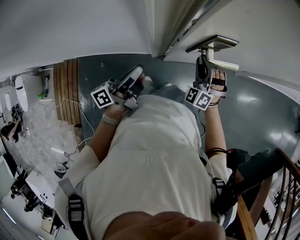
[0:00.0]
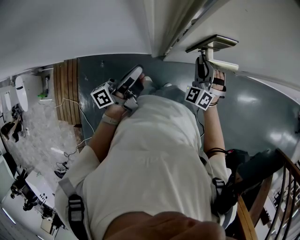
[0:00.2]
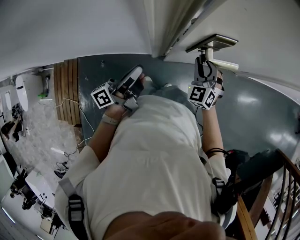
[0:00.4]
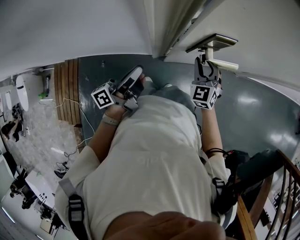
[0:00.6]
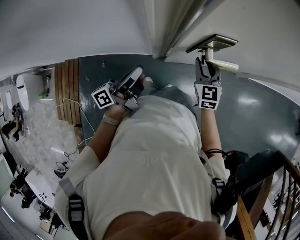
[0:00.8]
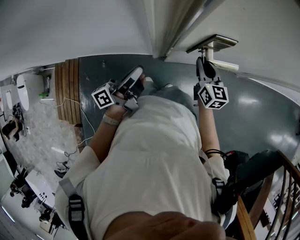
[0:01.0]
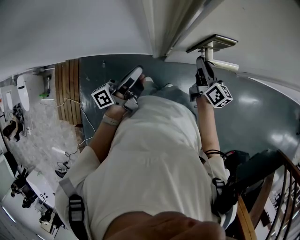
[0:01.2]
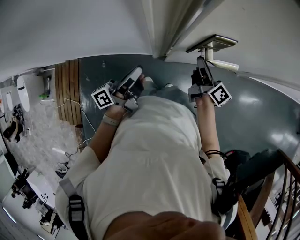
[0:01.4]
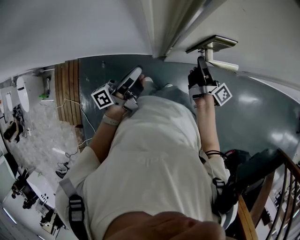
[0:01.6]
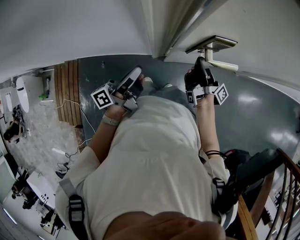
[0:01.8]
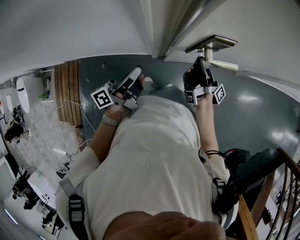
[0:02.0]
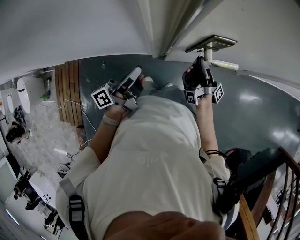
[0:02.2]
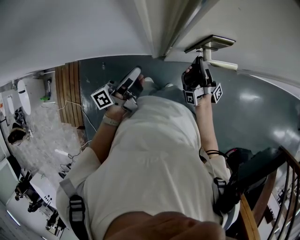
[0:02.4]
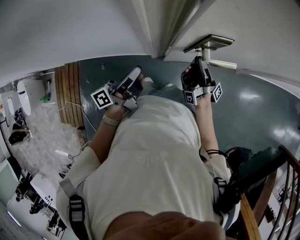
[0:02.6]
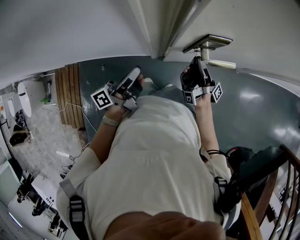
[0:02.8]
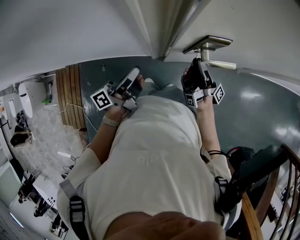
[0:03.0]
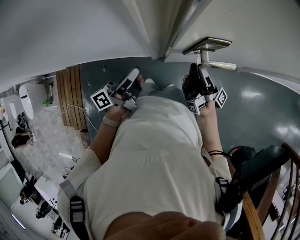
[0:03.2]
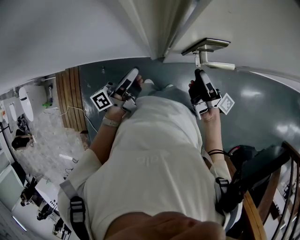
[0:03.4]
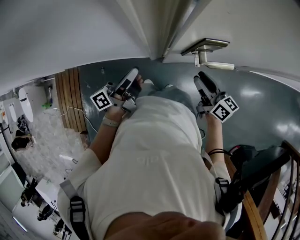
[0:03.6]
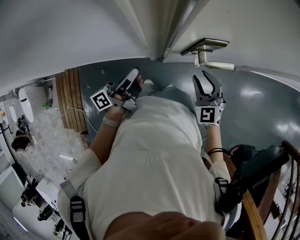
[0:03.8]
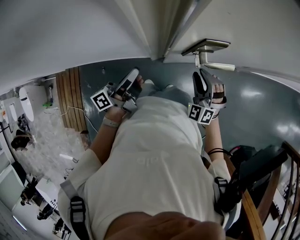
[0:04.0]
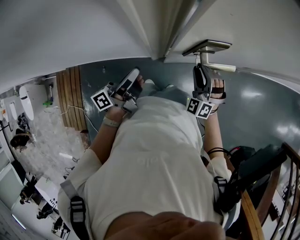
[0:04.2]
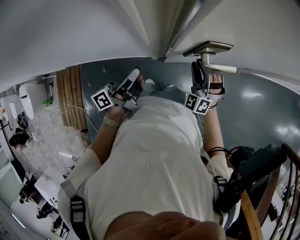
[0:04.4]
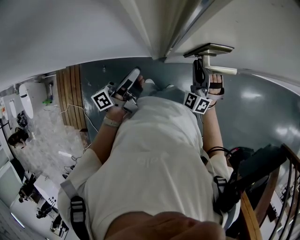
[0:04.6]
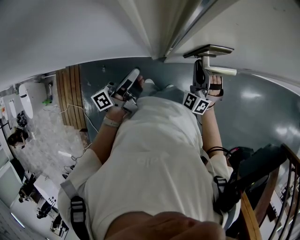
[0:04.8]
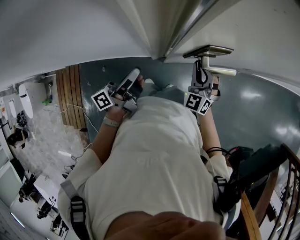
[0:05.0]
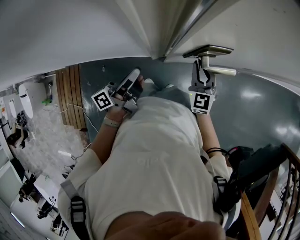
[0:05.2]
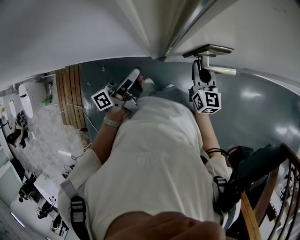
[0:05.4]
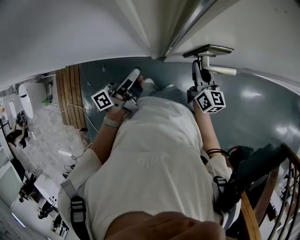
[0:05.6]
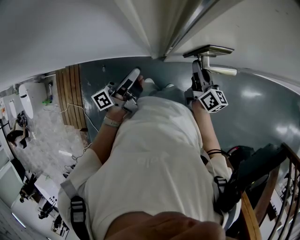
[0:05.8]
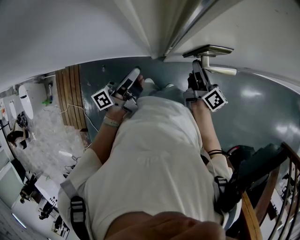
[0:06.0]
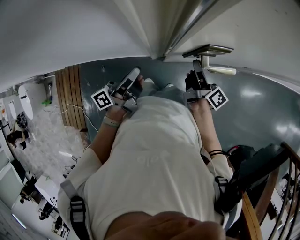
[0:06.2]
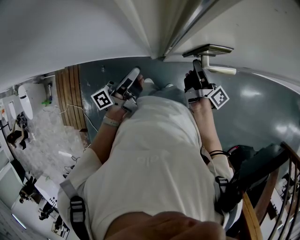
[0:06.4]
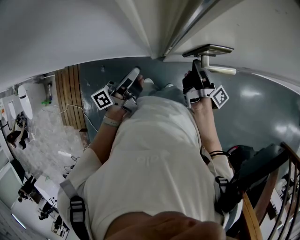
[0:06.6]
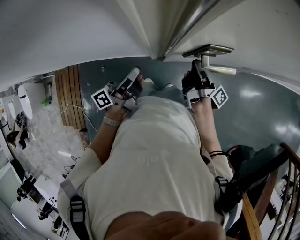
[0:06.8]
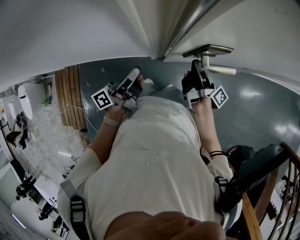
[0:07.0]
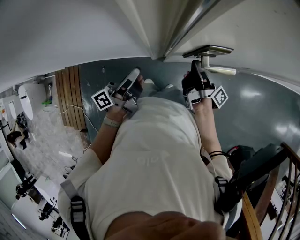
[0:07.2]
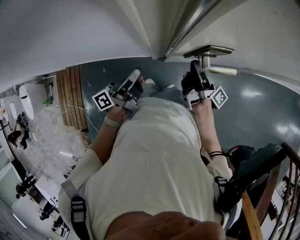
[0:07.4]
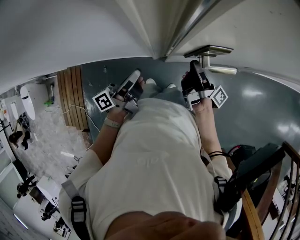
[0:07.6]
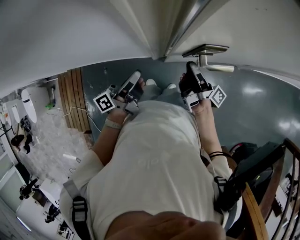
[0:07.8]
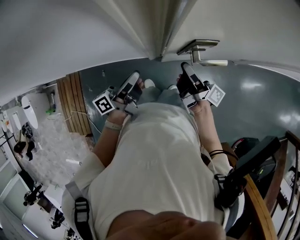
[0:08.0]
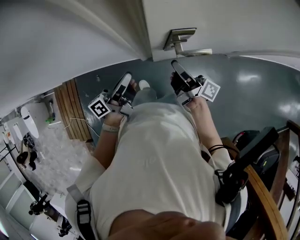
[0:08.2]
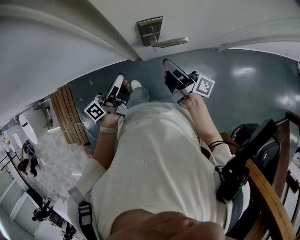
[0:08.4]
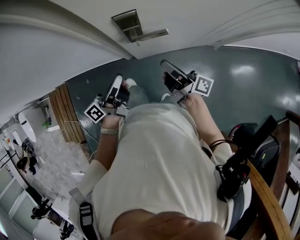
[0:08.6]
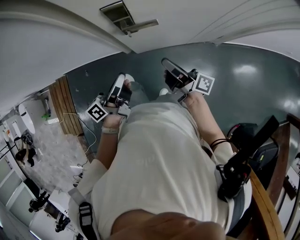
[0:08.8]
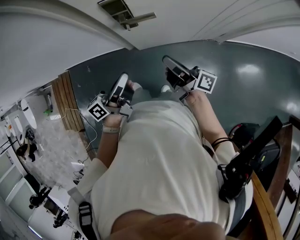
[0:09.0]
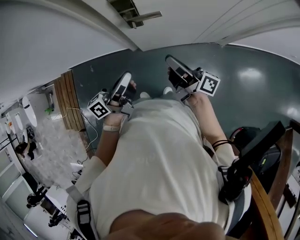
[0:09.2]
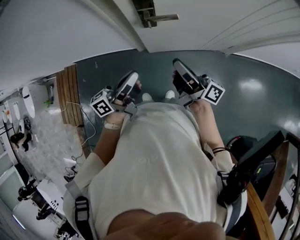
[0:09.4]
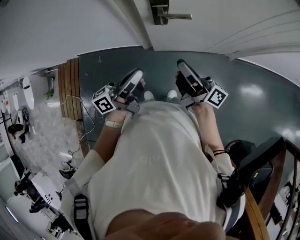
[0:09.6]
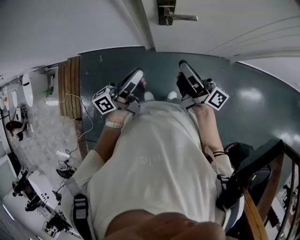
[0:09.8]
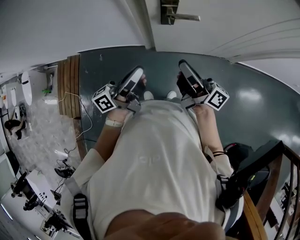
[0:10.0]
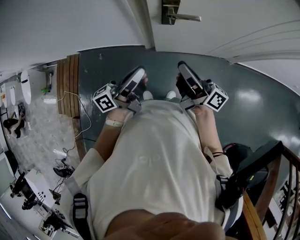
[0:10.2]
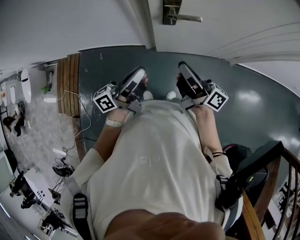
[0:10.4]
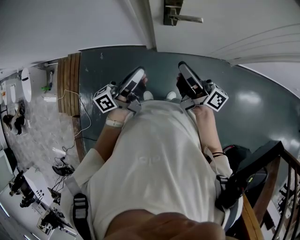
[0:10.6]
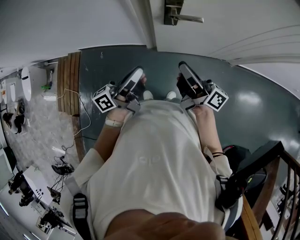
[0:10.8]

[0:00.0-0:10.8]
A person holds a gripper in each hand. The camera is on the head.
0:00.0 to 0:01.6: The right gripper rotates around the line of its fingers by roughly 140 degrees, clockwise from behind.
0:01.6 to 0:03.0: The right gripper changes its angle by about 40 degrees.
0:03.0 to 0:04.6: The right gripper tilts its fingers some 30 degrees downward.
0:04.6 to 0:06.2: The right gripper twists about 130 degrees clockwise, seen from behind.
0:06.2 to 0:07.8: The right gripper swivels roughly 30 degrees.
0:07.8 to 0:09.2: The right gripper travels backward, to the right and upward by some 25 cm, and rotates about 30 degrees. The left gripper moves to the right and backward, approximately 30 cm.
0:09.2 to 0:10.8: Both grippers move to the left, about 10 cm.

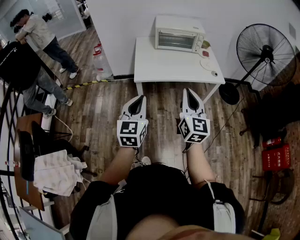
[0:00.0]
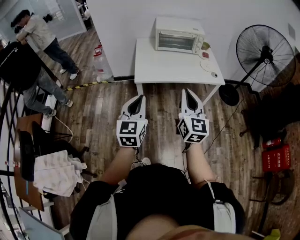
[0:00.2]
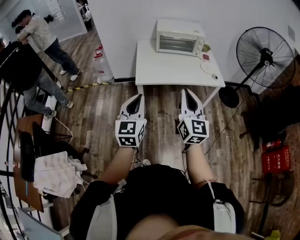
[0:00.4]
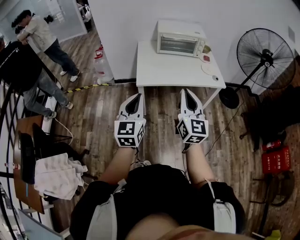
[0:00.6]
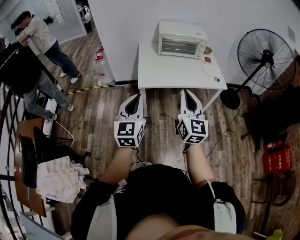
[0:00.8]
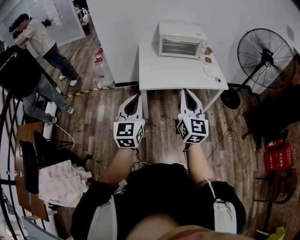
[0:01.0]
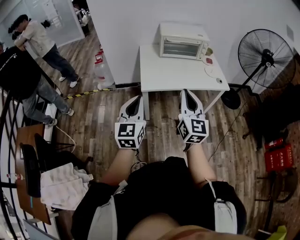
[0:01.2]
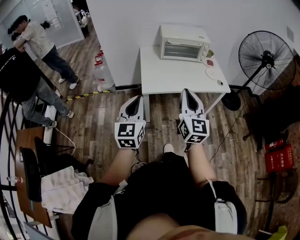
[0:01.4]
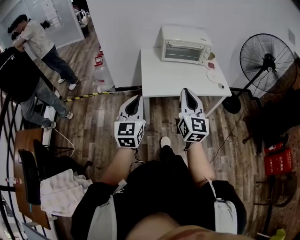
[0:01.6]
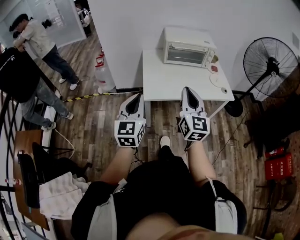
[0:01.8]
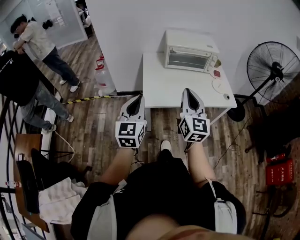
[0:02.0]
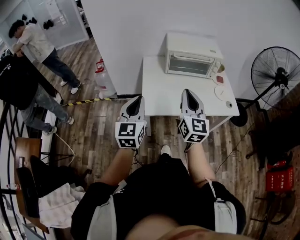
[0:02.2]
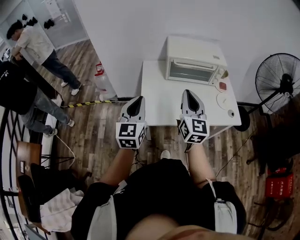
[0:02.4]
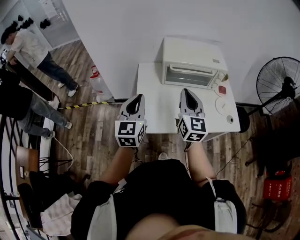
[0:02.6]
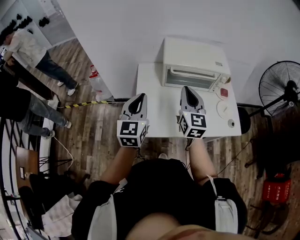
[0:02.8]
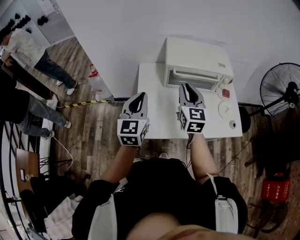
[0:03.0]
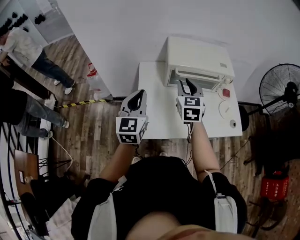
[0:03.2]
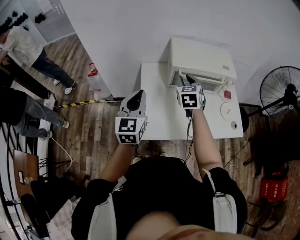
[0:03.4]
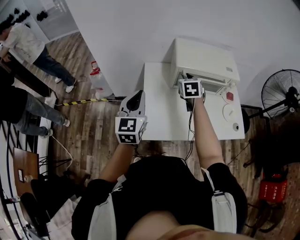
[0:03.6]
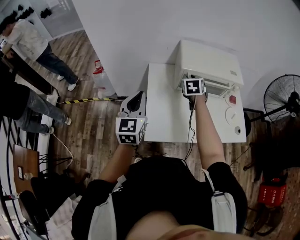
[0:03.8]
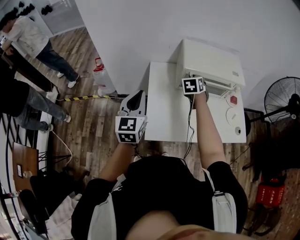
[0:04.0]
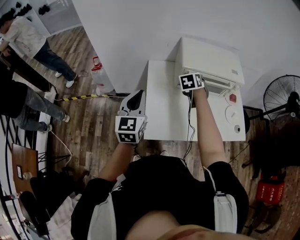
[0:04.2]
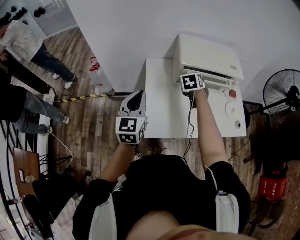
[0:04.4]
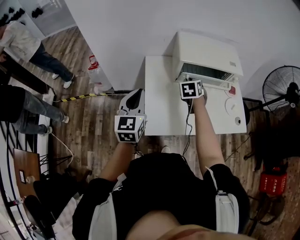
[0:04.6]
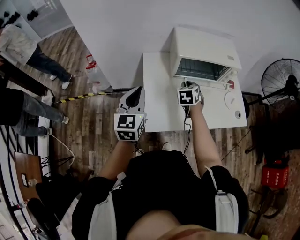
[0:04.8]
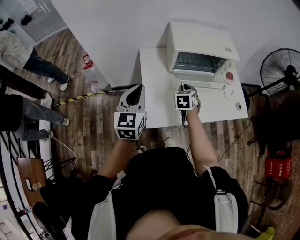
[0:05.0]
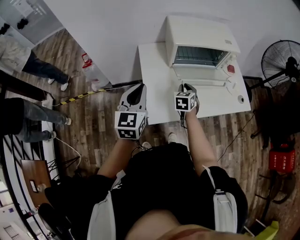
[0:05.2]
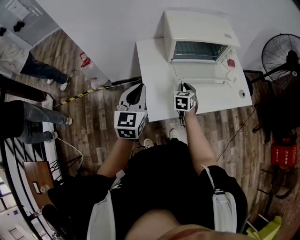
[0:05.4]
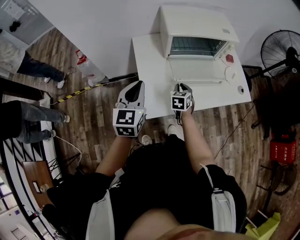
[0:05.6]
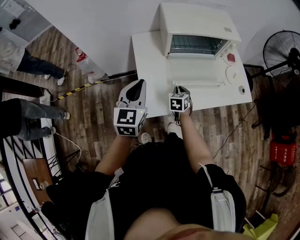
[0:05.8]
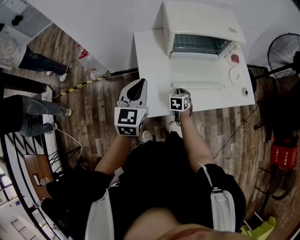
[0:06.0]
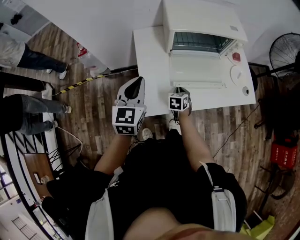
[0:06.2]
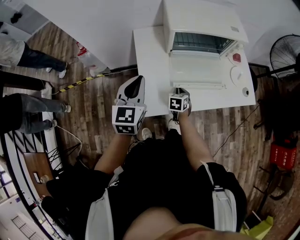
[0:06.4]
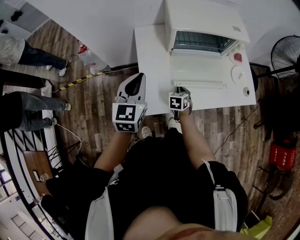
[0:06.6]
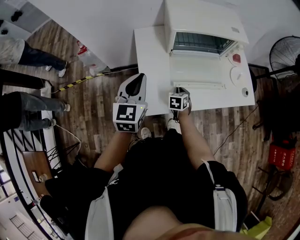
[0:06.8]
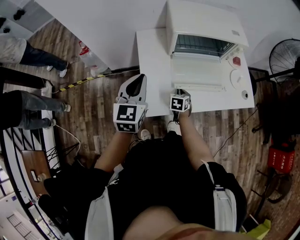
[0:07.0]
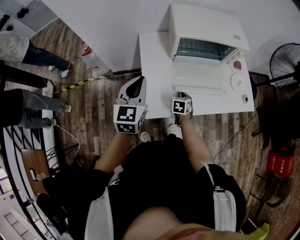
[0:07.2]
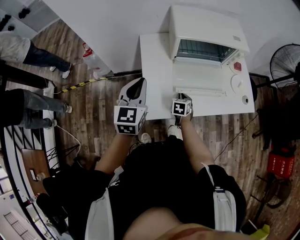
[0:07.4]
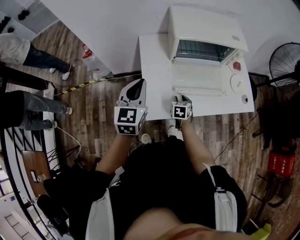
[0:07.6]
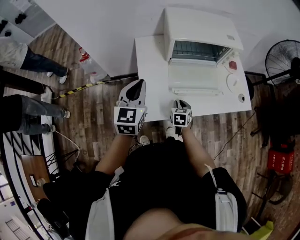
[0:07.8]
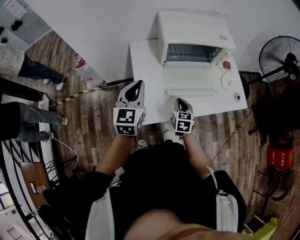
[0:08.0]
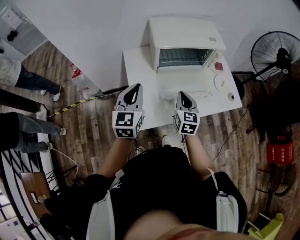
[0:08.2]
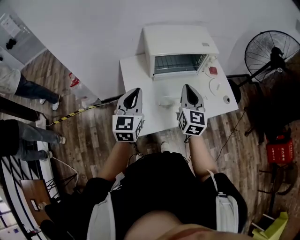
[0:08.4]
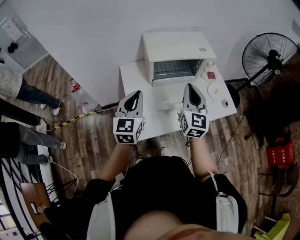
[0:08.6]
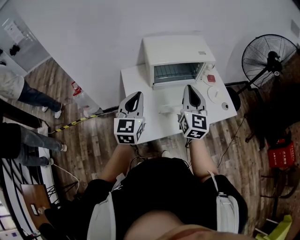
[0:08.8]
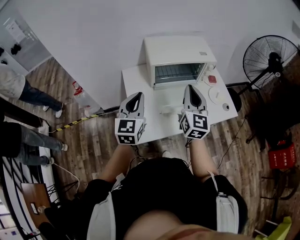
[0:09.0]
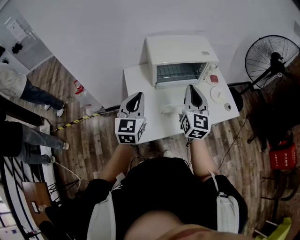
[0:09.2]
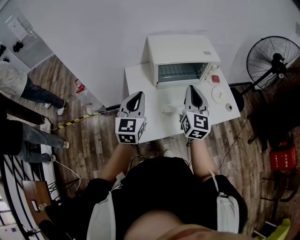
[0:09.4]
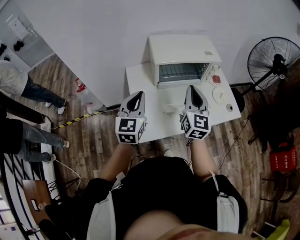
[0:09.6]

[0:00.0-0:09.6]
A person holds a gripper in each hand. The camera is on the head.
0:00.0 to 0:01.6: Both grippers move to the left and forward, about 15 cm.
0:01.6 to 0:03.2: Both grippers move forward, about 40 cm. The right gripper changes its angle by approximately 30 degrees, and opens its fingers.
0:03.2 to 0:04.8: The right gripper travels downward by about 15 cm, and rotates some 30 degrees, while the left gripper shifts about 5 cm to the left.
0:04.8 to 0:06.4: The left gripper moves approximately 5 cm, while the right gripper travels downward and backward by approximately 20 cm.
0:06.4 to 0:08.0: The right gripper heads upward, covering about 10 cm, and opens and closes again.
0:08.0 to 0:09.6: The right gripper goes about 25 cm upward, and angles its fingers upward, by roughly 40 degrees. Meanwhile the left gripper shifts by roughly 5 cm.

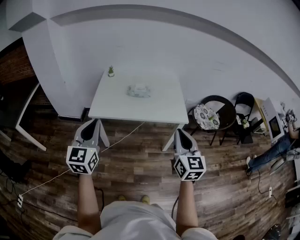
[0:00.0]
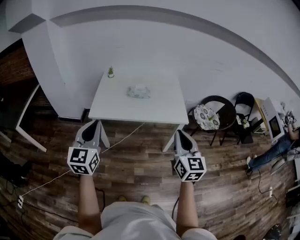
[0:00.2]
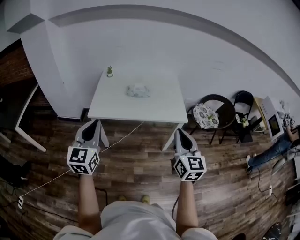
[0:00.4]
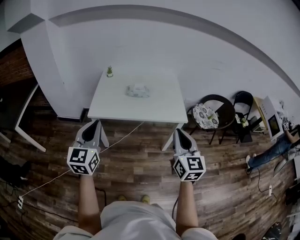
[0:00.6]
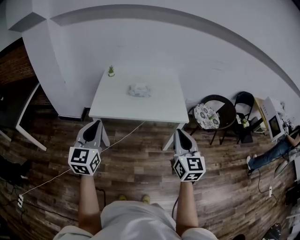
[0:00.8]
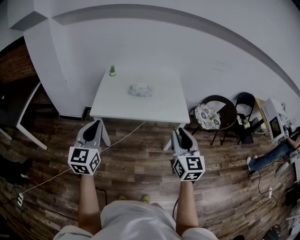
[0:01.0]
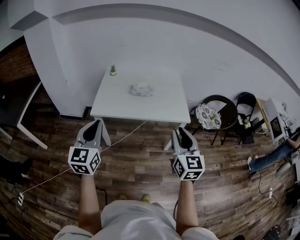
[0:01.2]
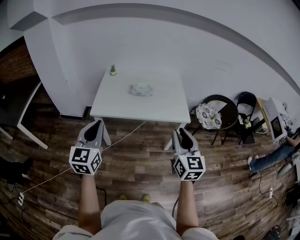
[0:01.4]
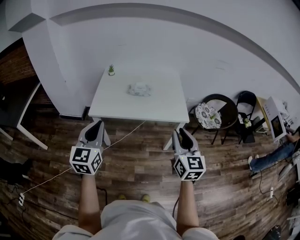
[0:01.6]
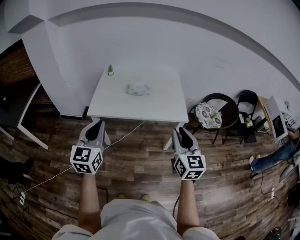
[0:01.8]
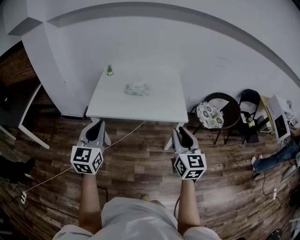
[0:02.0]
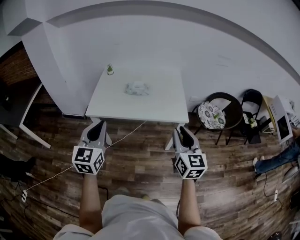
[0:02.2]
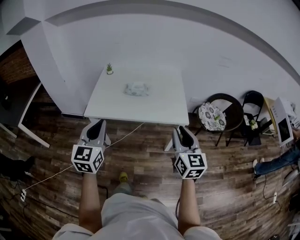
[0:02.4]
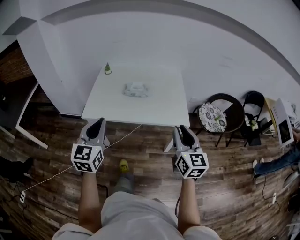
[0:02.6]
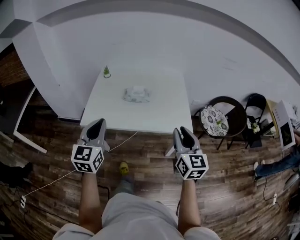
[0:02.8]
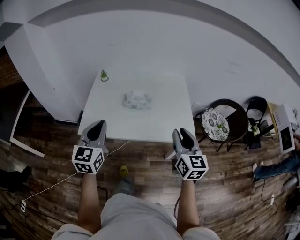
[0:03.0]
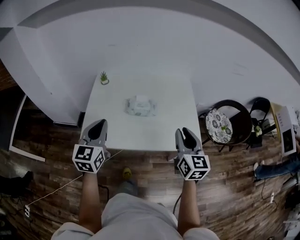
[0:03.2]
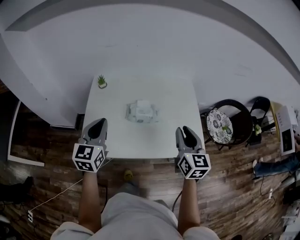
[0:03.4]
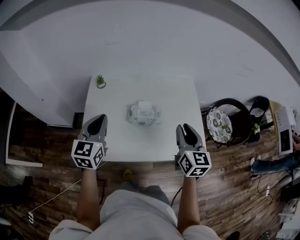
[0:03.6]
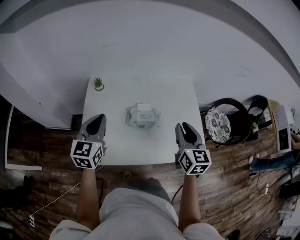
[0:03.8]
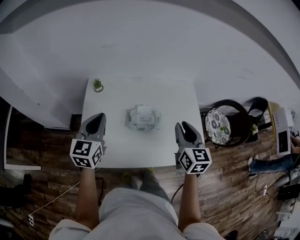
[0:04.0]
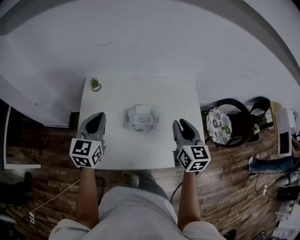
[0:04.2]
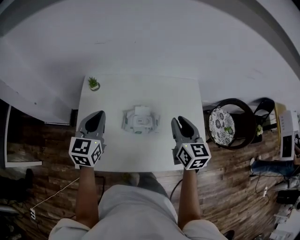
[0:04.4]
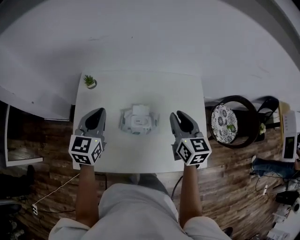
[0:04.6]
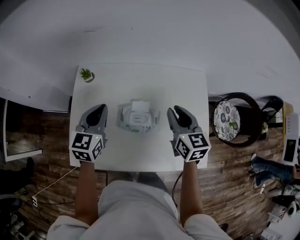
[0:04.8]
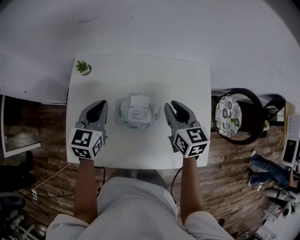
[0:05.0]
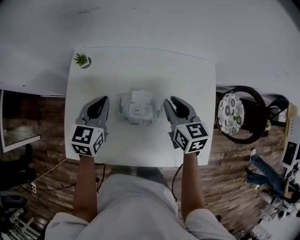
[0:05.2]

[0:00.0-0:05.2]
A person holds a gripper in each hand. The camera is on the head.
0:00.0 to 0:01.8: The left gripper heads to the right, covering roughly 5 cm. The right gripper opens its fingers.
0:01.8 to 0:03.4: Both grippers move forward, roughly 40 cm.
0:03.4 to 0:05.2: The grippers both shift forward and downward by some 30 cm. The right gripper changes its angle by some 30 degrees.
